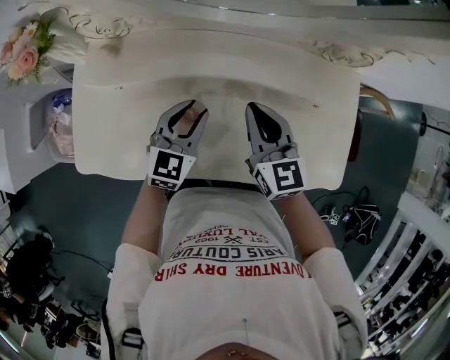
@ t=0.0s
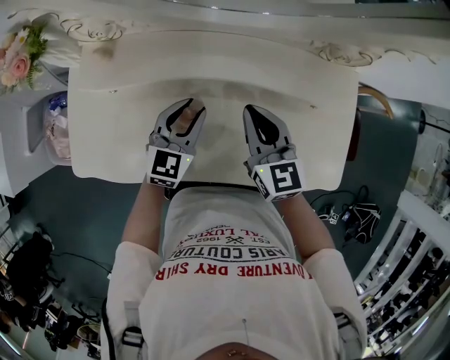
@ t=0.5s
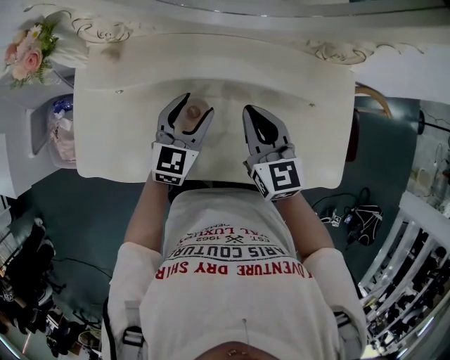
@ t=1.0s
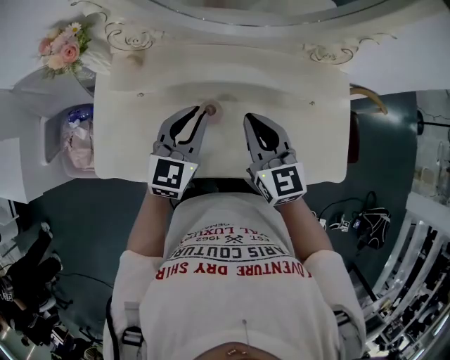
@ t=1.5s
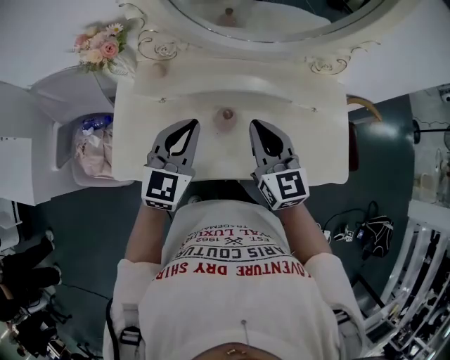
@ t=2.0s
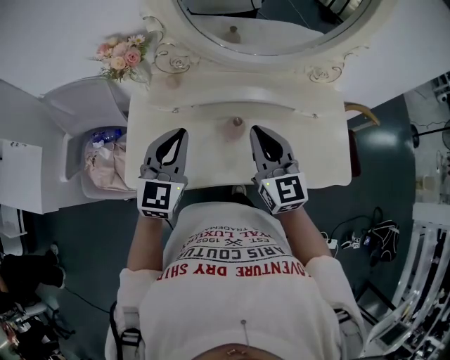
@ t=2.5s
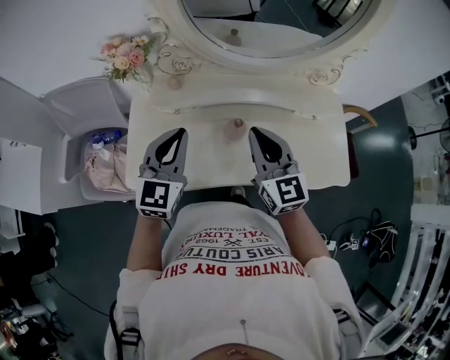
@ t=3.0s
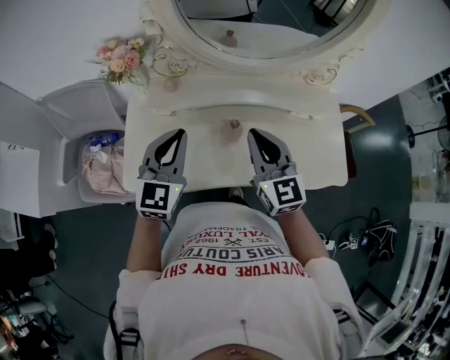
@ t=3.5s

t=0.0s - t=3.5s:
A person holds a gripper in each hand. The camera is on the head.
t=0.0s - t=2.0s: The right gripper moves upward, backward and to the left, some 15 cm; the left gripper shifts approximately 20 cm upward, to the left and backward, and closes up.
t=2.0s - t=3.5s: The left gripper moves to the left, approximately 5 cm. Meanwhile the right gripper changes place by roughly 5 cm.

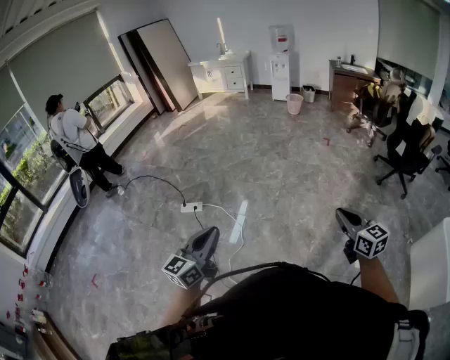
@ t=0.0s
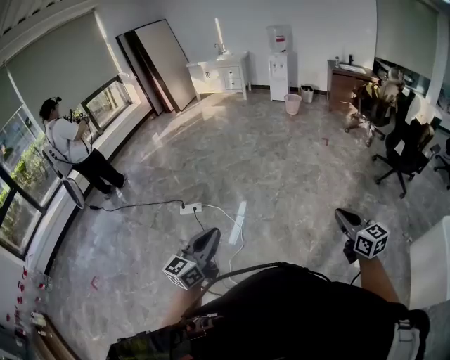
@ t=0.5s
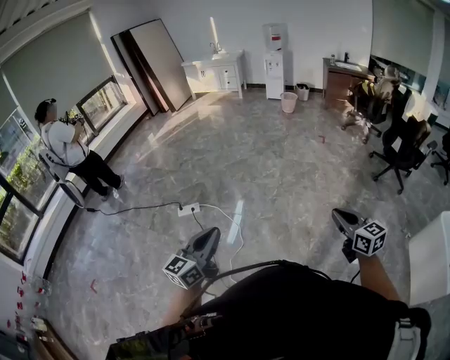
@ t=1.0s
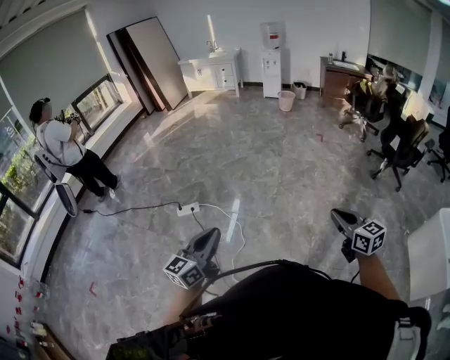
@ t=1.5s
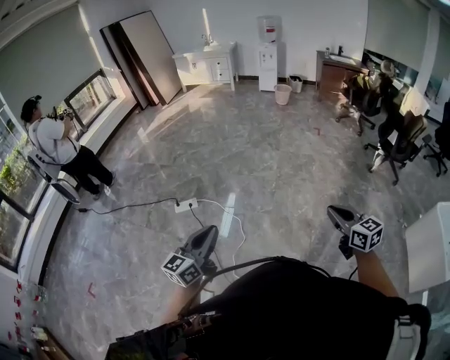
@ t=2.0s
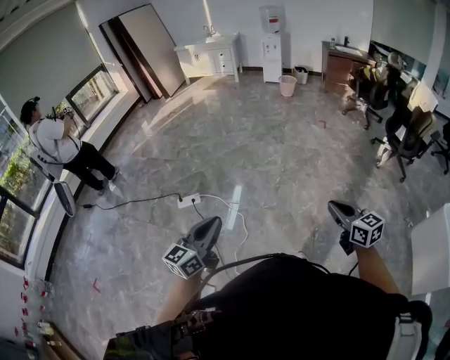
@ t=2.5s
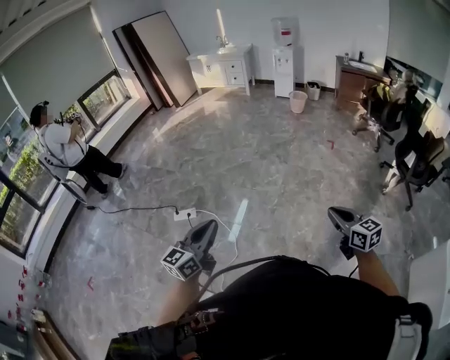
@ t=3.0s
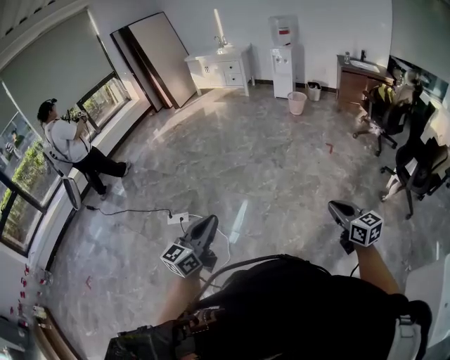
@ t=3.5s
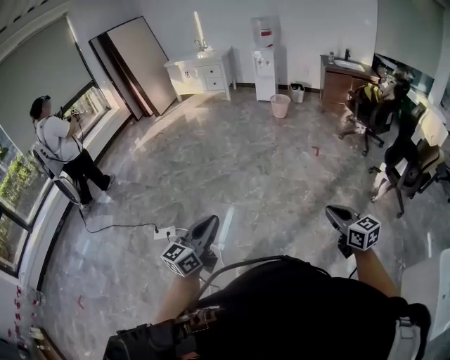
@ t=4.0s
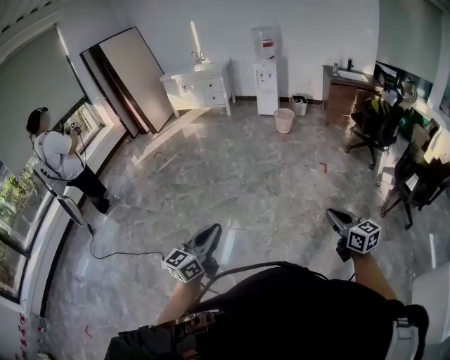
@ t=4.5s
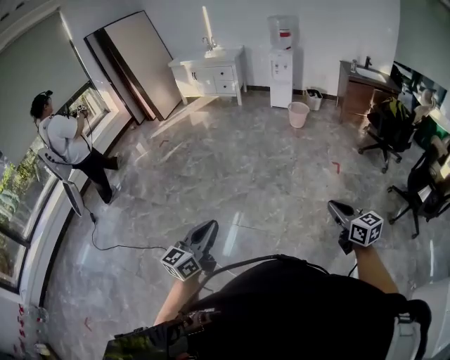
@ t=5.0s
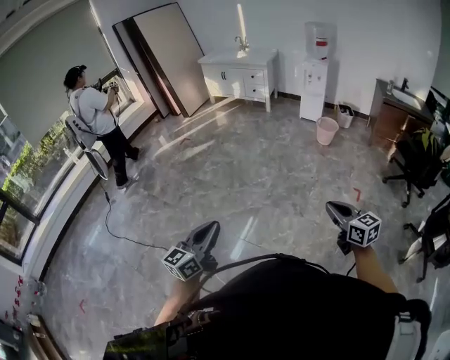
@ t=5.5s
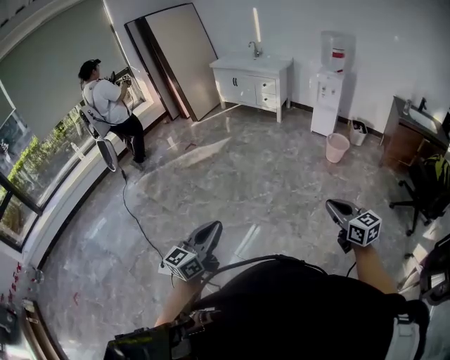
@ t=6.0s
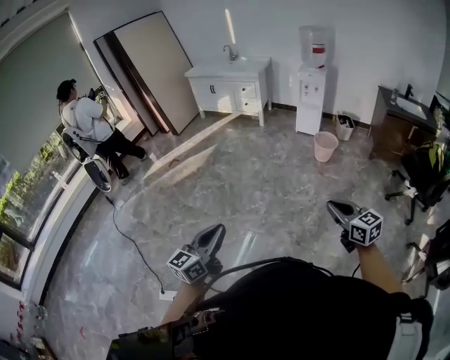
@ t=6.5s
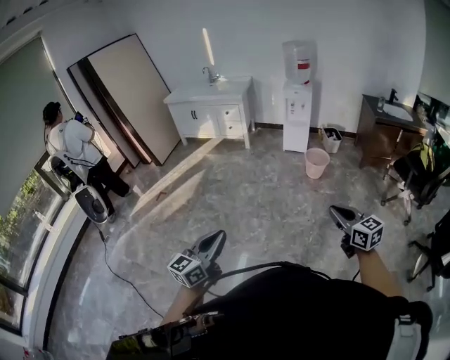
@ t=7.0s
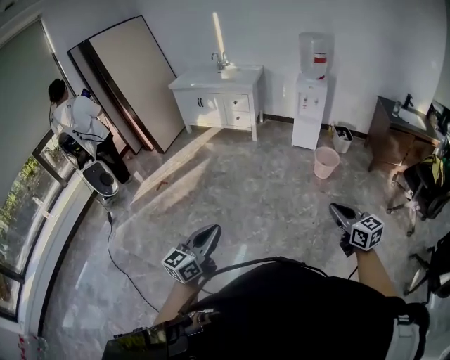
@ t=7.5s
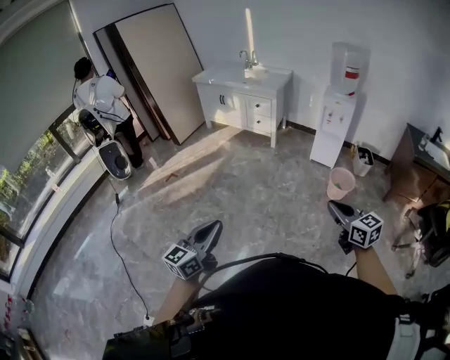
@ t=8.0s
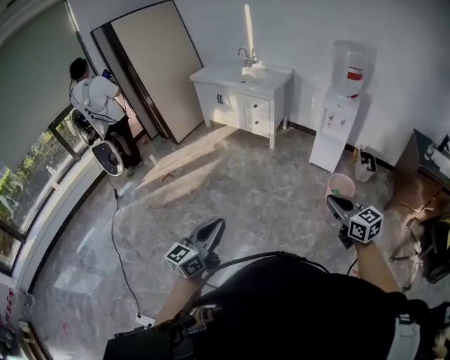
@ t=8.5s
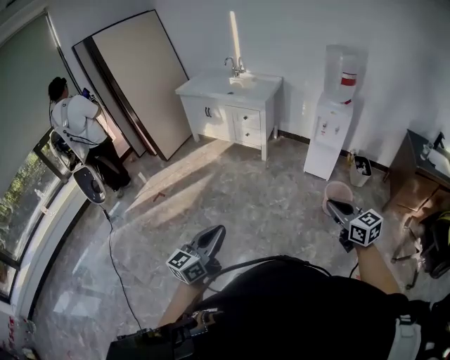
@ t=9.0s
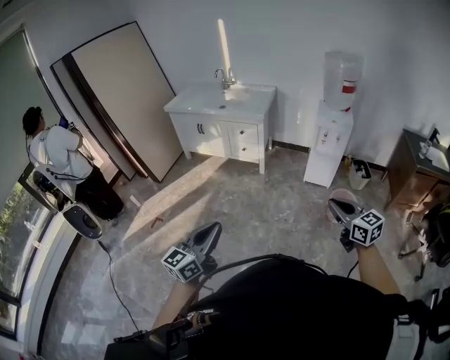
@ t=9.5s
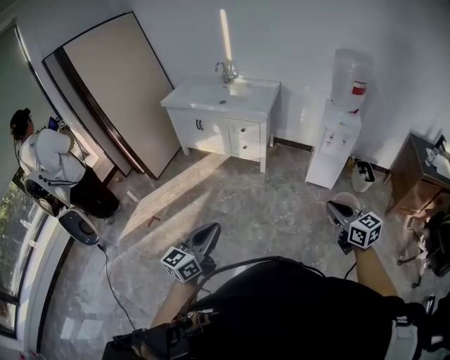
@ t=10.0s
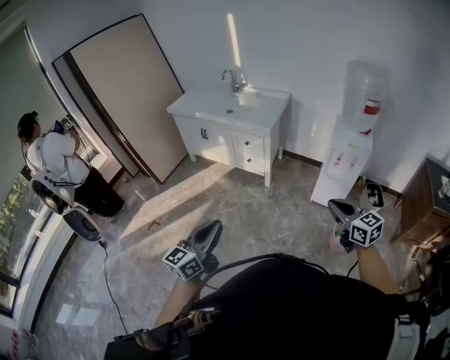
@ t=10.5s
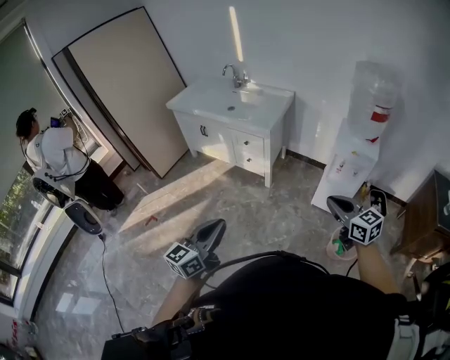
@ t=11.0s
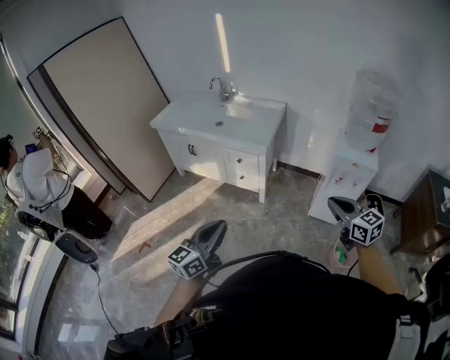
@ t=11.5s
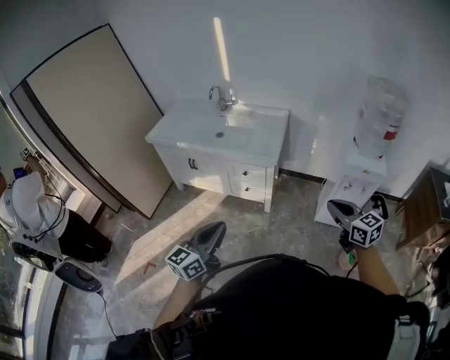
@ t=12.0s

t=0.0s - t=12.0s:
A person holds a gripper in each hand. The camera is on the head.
t=0.0s - t=2.0s: The two grippers go approximately 10 cm to the left.
t=2.0s - t=4.0s: Both grippers are carried forward and to the right, roughly 50 cm.
t=4.0s - t=6.0s: Both grippers are carried forward, roughly 70 cm.
t=6.0s - t=8.0s: The two grippers travel together, forward, some 50 cm.
t=8.0s - t=10.0s: The two grippers travel together, forward, about 40 cm.
t=10.0s - t=12.0s: The two grippers travel together, forward, about 50 cm.

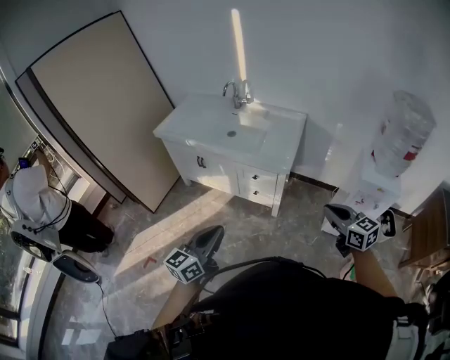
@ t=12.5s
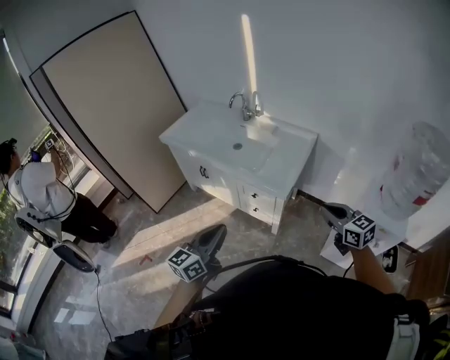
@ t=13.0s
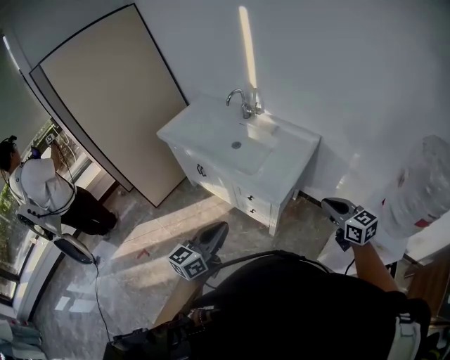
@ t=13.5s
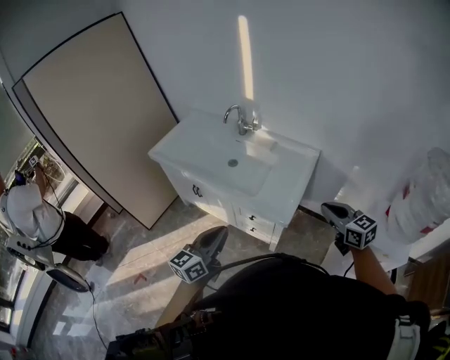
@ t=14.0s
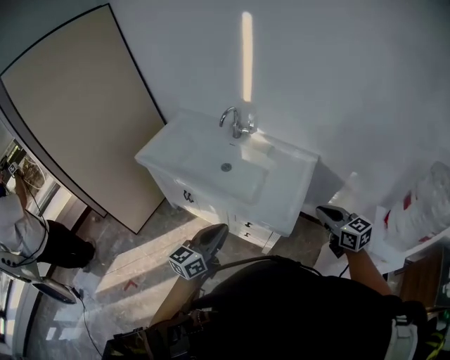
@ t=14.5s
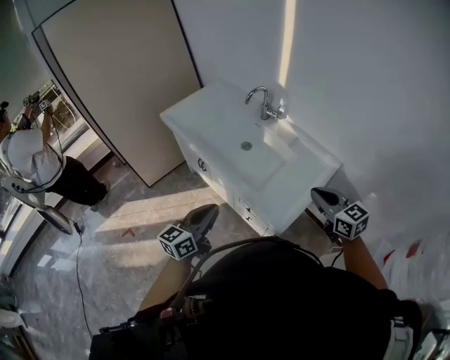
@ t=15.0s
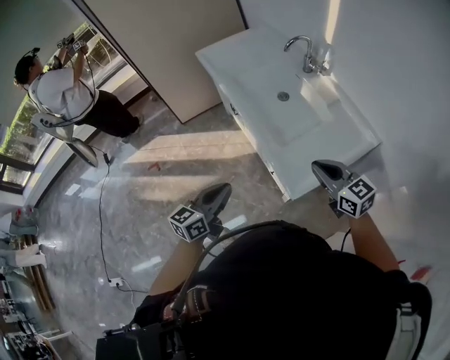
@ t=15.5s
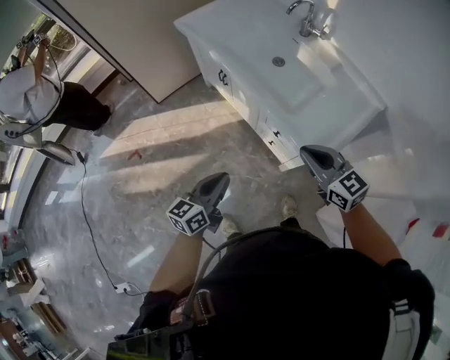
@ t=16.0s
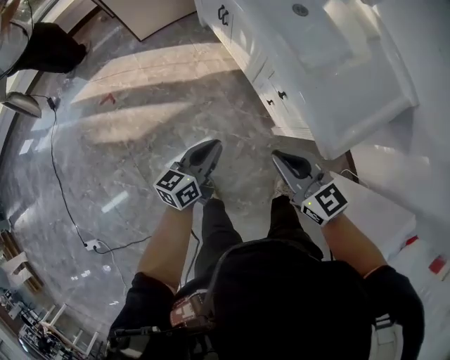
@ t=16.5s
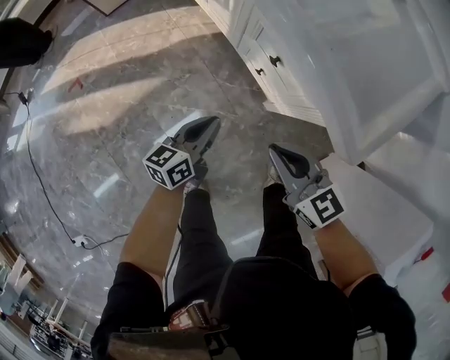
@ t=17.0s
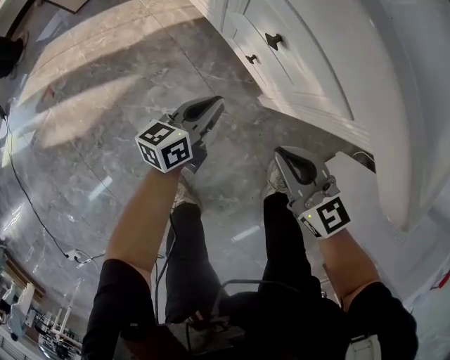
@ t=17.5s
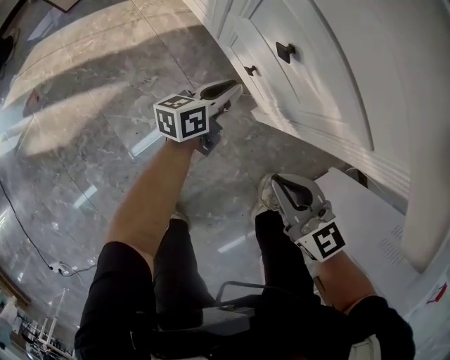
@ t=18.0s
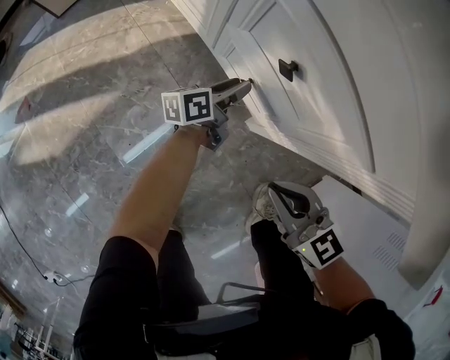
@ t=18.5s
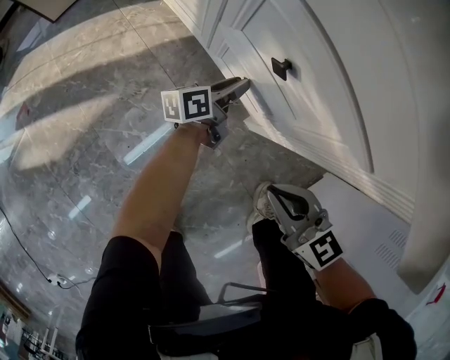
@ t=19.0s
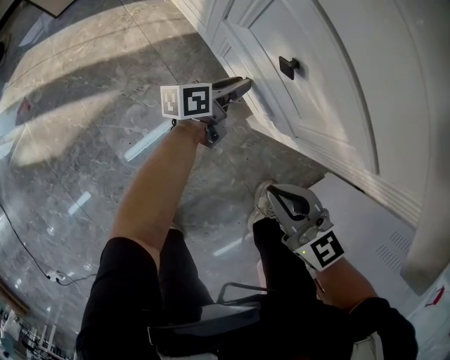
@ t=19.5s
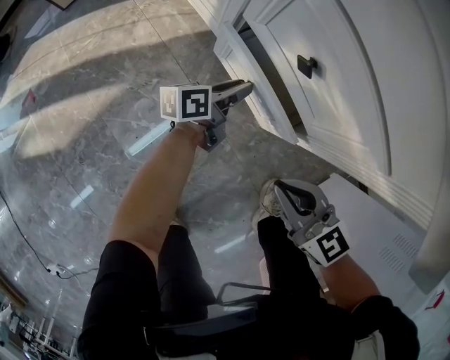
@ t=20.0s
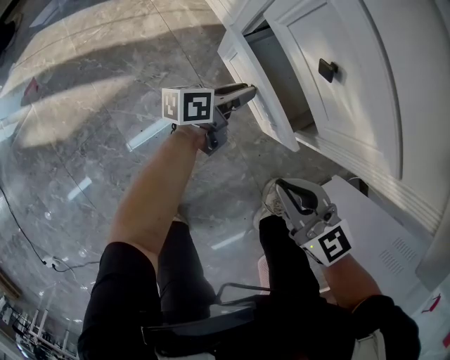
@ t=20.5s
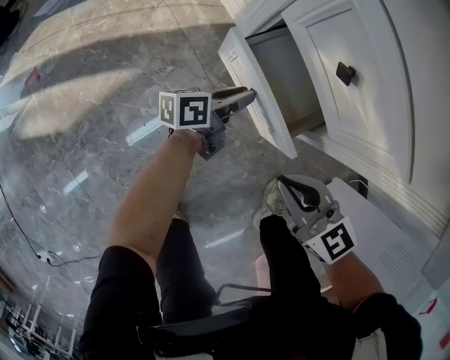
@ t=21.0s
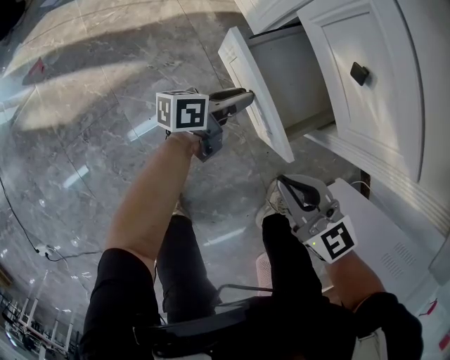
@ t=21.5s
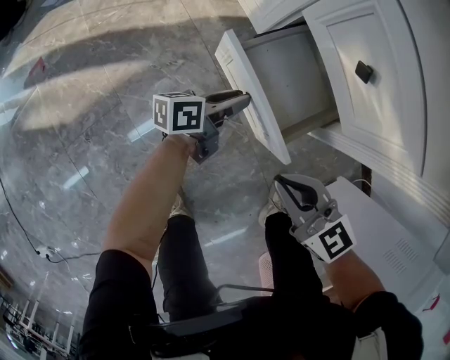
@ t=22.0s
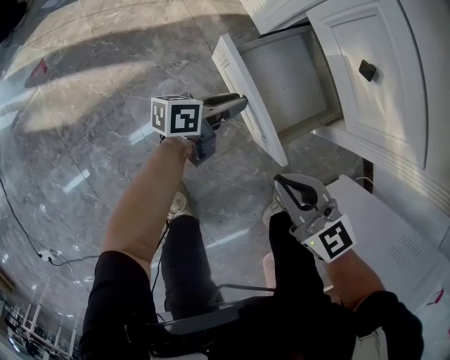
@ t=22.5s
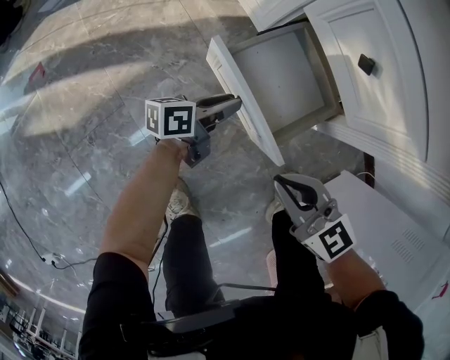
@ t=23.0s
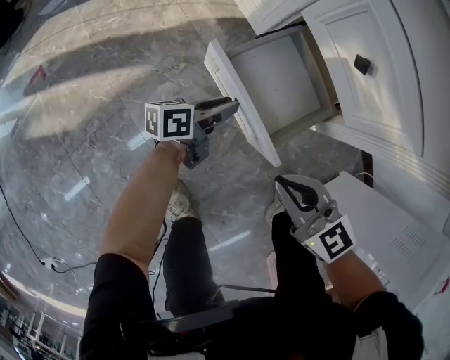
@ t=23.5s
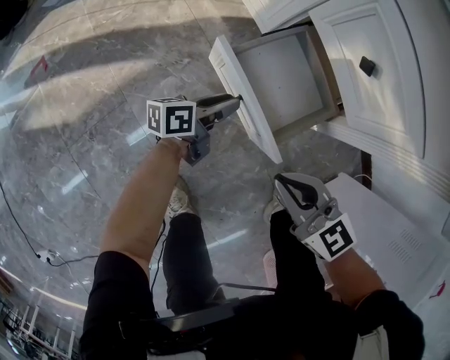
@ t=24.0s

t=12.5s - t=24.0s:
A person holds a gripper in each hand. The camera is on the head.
t=12.5s - t=14.5s: The two grippers go some 35 cm forward.
t=14.5s - t=16.5s: Both grippers move downward, approximately 30 cm. The left gripper turns by about 40 degrees; the right gripper turns by about 40 degrees.
t=16.5s - t=18.5s: The left gripper moves downward, to the right and forward, some 50 cm, swivels about 30 degrees, and opens. Meanwhile the right gripper is displaced downward by approximately 40 cm.
t=18.5s - t=20.0s: The grippers move only a little.
t=20.0s - t=22.0s: The left gripper goes some 10 cm to the left and backward; the right gripper shifts about 10 cm to the left.
t=22.0s - t=24.0s: The left gripper moves roughly 5 cm.
